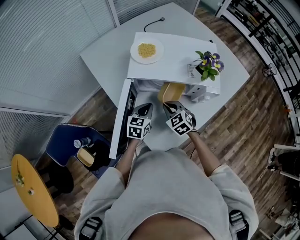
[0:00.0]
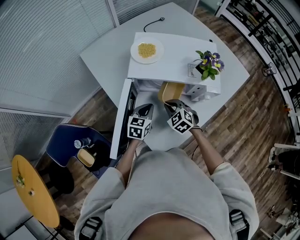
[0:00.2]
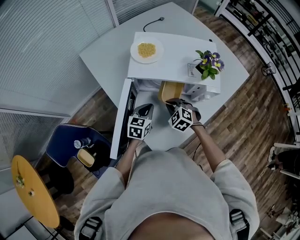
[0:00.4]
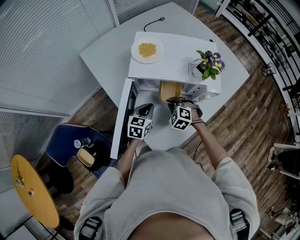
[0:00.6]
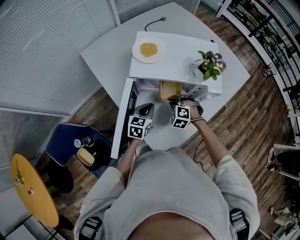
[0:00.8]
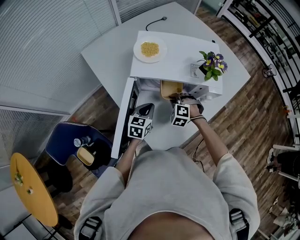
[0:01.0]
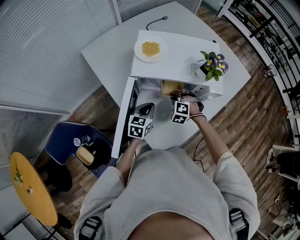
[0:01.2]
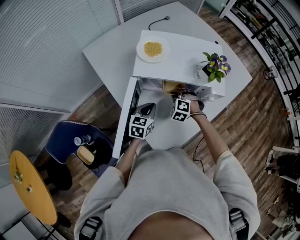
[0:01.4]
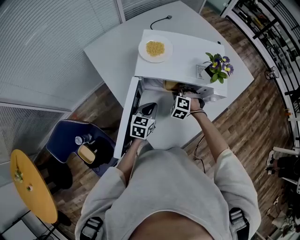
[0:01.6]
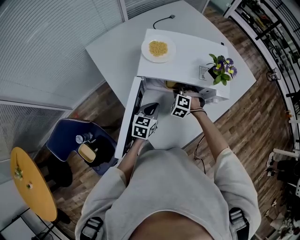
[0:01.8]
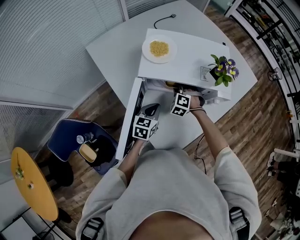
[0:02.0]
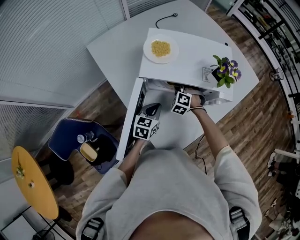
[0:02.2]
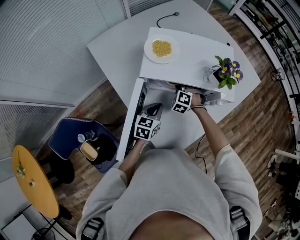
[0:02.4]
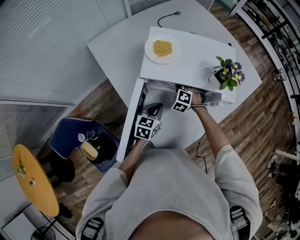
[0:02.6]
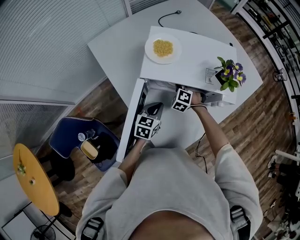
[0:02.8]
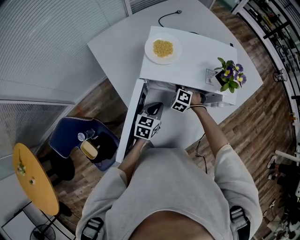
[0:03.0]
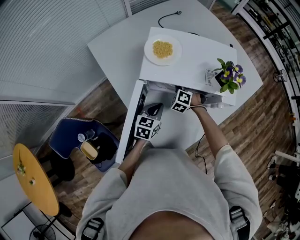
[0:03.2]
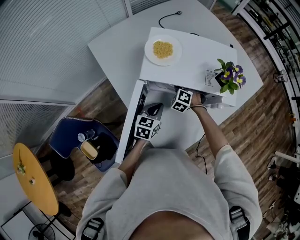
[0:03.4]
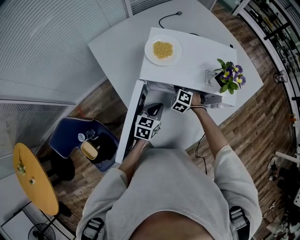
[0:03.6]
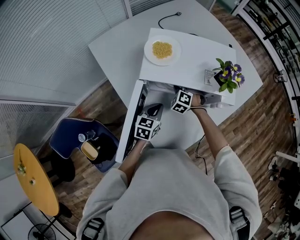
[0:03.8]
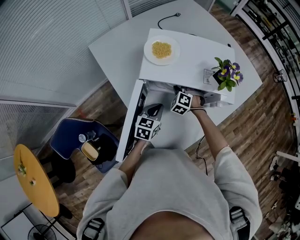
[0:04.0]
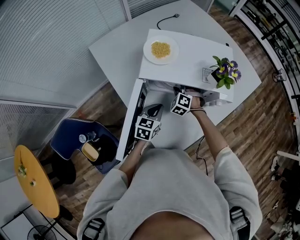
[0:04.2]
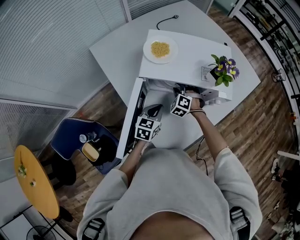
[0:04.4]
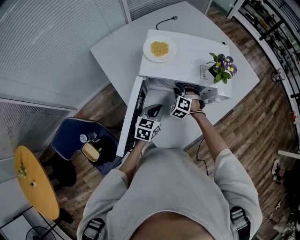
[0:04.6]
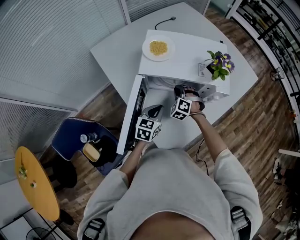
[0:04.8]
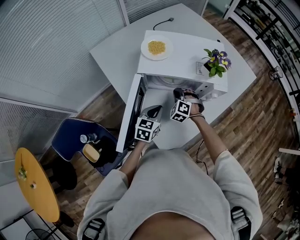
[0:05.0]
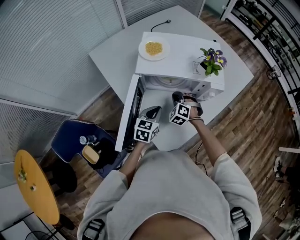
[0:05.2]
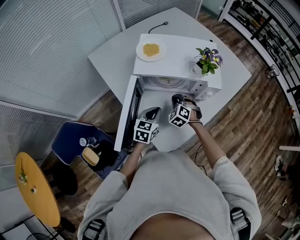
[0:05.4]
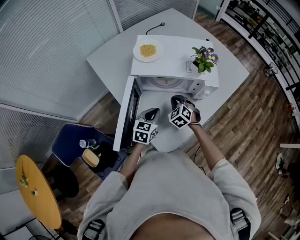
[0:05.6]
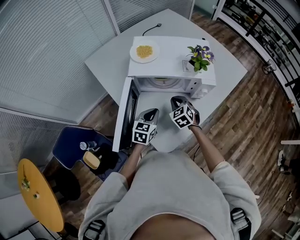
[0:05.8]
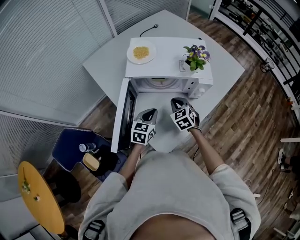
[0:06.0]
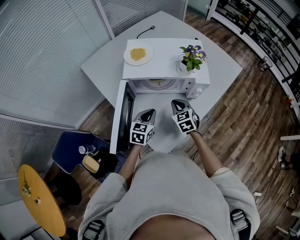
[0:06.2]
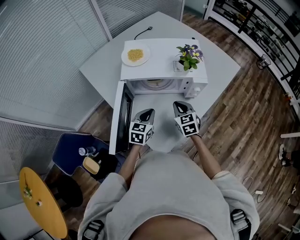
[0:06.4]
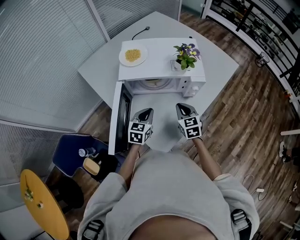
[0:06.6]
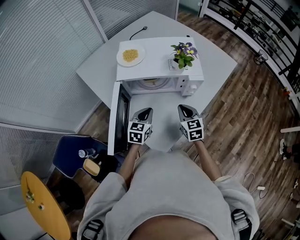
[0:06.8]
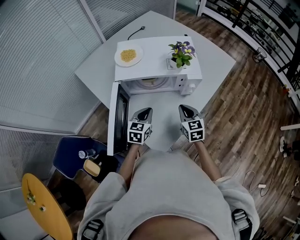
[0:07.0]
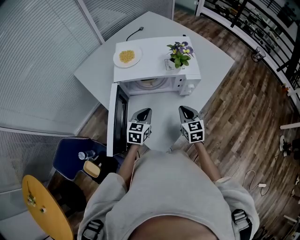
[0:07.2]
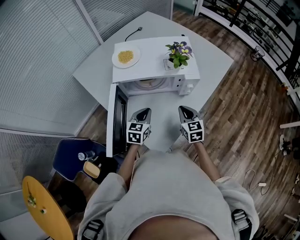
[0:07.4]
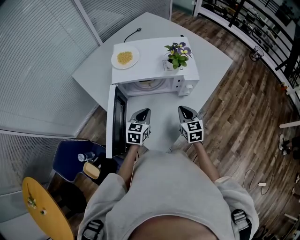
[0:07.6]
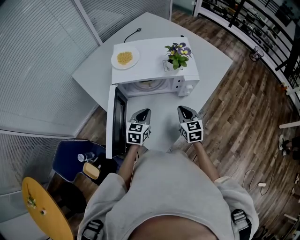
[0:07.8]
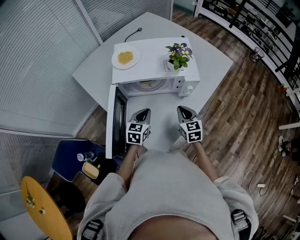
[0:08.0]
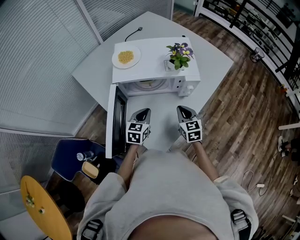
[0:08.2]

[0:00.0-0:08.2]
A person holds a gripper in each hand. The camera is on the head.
0:00.0 to 0:01.6: The right gripper is displaced forward by approximately 5 cm, and swivels about 40 degrees.
0:01.6 to 0:03.2: The right gripper heads forward, covering some 5 cm.
0:03.2 to 0:05.0: The right gripper moves backward, approximately 10 cm, and opens and closes again. The left gripper moves approximately 5 cm.
0:05.0 to 0:06.6: The right gripper goes approximately 15 cm to the right, upward and backward, and rolls clockwise, seen from behind, by roughly 60 degrees.
0:06.6 to 0:08.2: There are only small adjustments of the grippers.

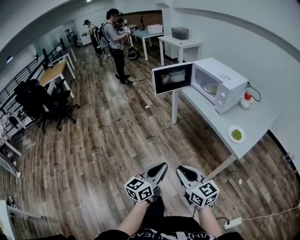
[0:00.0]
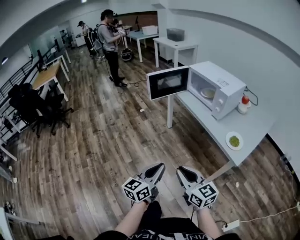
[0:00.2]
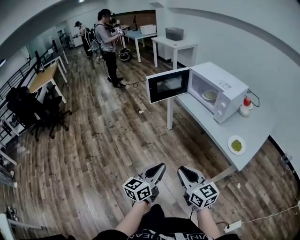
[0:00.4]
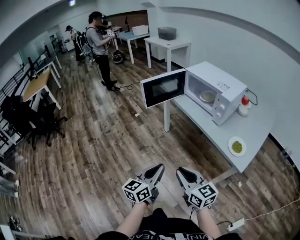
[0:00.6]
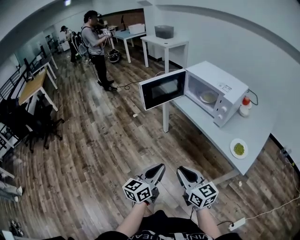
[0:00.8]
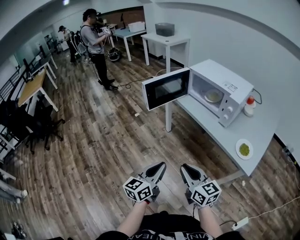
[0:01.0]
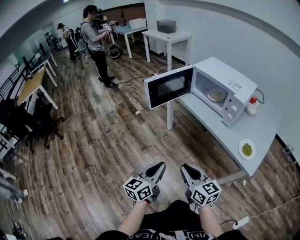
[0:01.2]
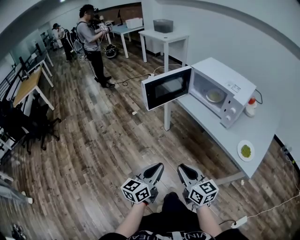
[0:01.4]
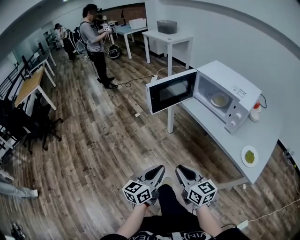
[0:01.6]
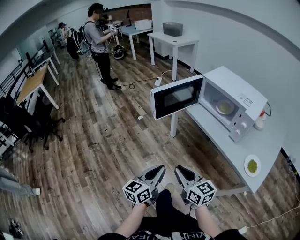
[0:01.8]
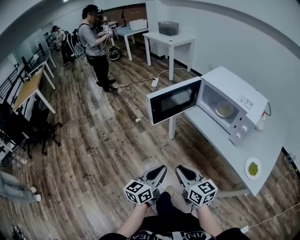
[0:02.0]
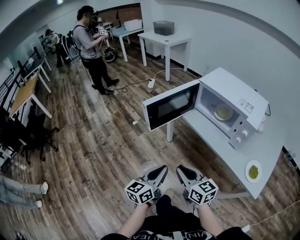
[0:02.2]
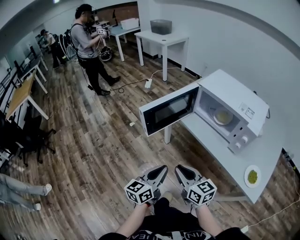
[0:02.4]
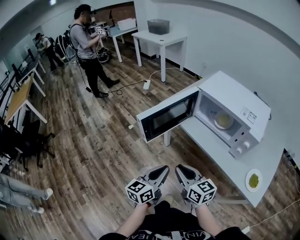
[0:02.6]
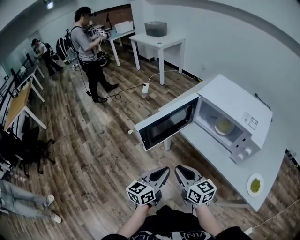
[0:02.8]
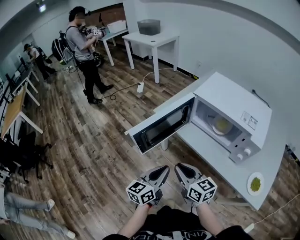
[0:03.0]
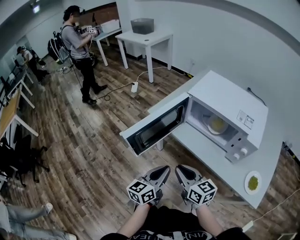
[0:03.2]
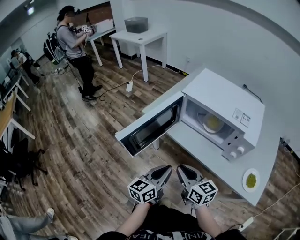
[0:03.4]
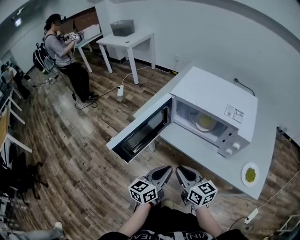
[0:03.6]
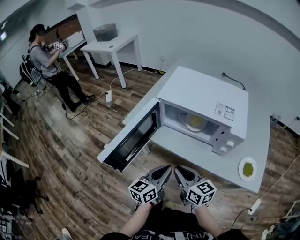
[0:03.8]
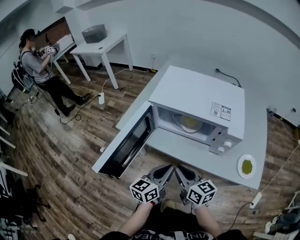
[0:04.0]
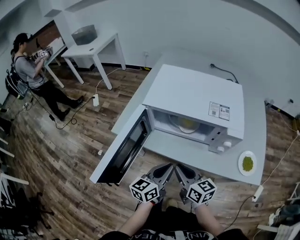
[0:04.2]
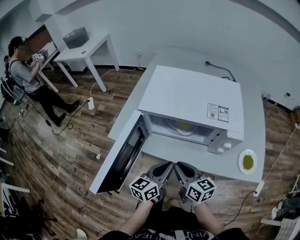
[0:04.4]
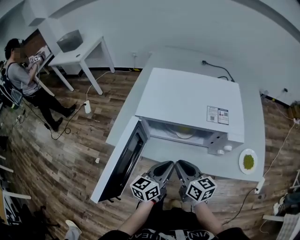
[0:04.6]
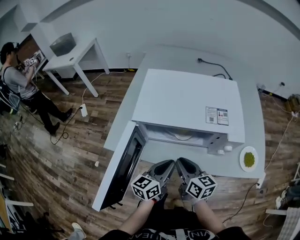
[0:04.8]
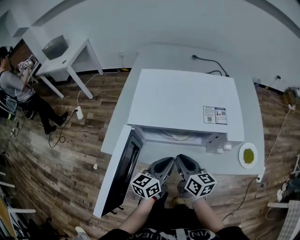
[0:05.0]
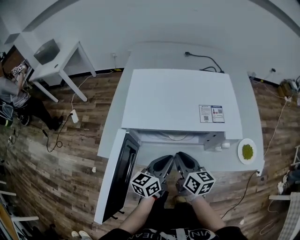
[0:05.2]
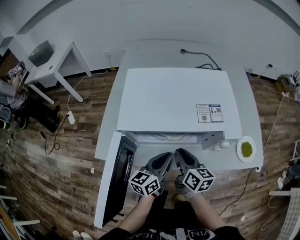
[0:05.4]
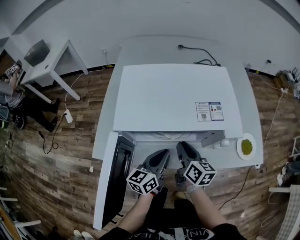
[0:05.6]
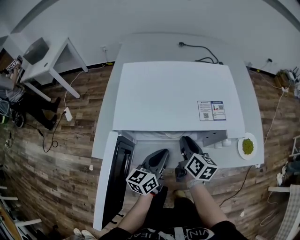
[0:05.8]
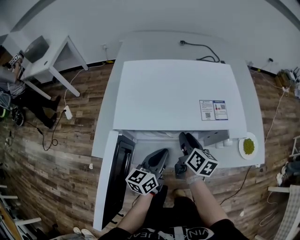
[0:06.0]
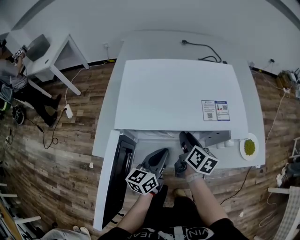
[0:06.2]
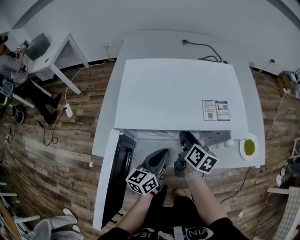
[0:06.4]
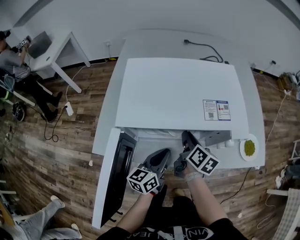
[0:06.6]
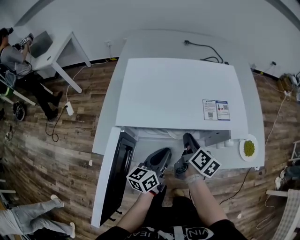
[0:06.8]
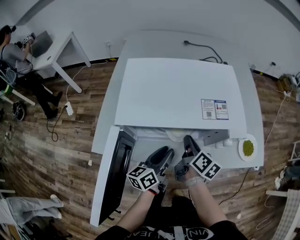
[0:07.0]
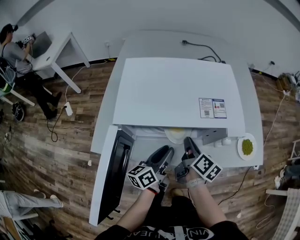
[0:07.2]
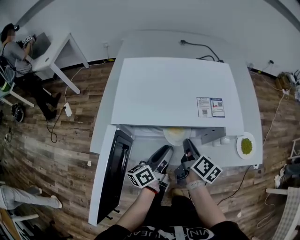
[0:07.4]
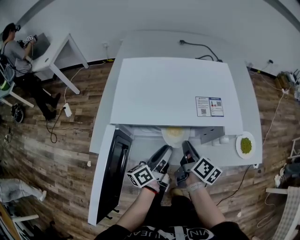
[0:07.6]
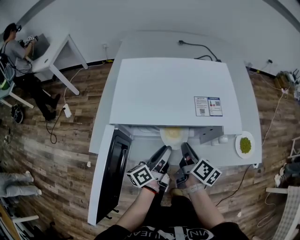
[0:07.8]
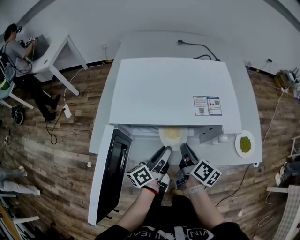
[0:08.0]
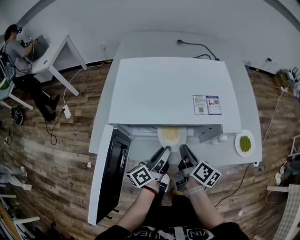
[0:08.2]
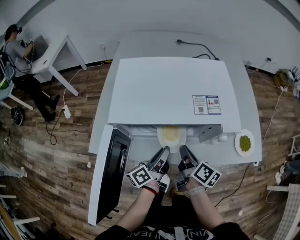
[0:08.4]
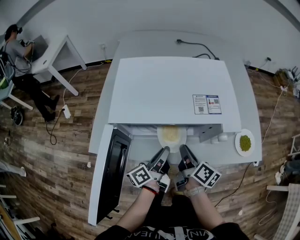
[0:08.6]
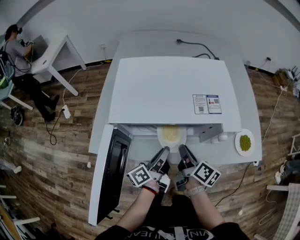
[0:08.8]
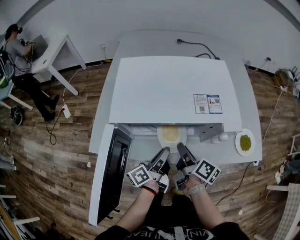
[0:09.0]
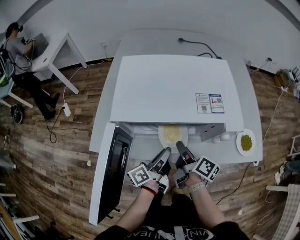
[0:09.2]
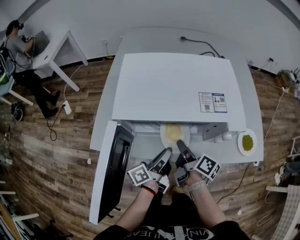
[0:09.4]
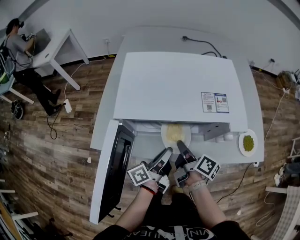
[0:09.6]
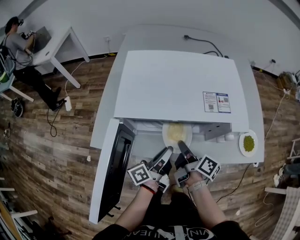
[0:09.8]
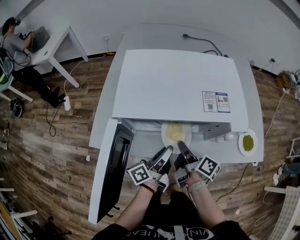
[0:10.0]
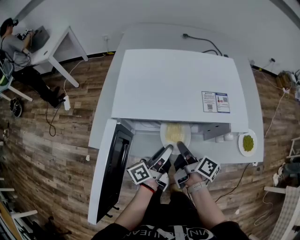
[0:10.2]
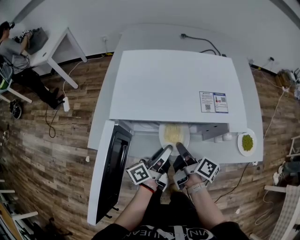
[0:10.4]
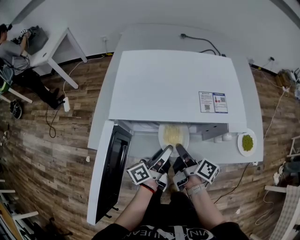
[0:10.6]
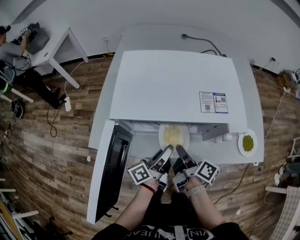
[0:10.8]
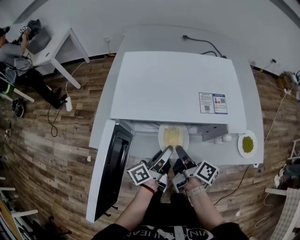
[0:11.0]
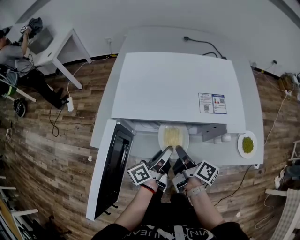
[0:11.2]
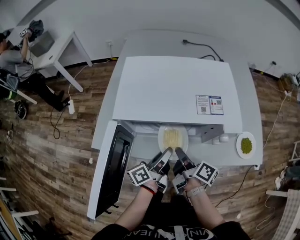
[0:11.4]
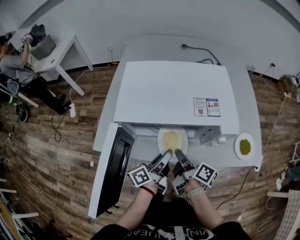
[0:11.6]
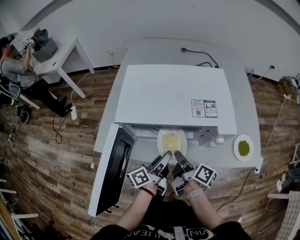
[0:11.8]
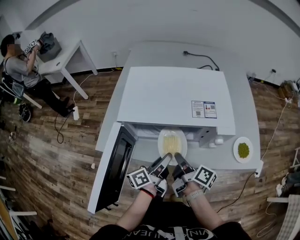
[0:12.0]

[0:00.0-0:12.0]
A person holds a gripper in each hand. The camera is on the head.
0:00.0 to 0:01.6: The two grippers go about 25 cm forward.
0:01.6 to 0:03.0: Both grippers move forward, approximately 30 cm.
0:03.0 to 0:04.4: The left gripper ends up some 20 cm from where it was, and changes its angle by roughly 30 degrees, while the right gripper moves some 15 cm, and rotates roughly 30 degrees.
0:04.4 to 0:06.0: The right gripper travels forward by some 15 cm, and changes its angle by approximately 40 degrees; the left gripper travels forward by some 10 cm.
0:06.0 to 0:07.6: The left gripper changes its angle by some 30 degrees, and opens its fingers; the right gripper ends up about 5 cm from where it was.
0:07.6 to 0:09.0: The grippers stay close to where they were, moving slightly.
0:09.0 to 0:12.0: There are only small adjustments of the grippers.

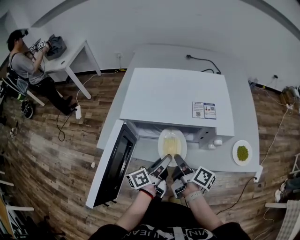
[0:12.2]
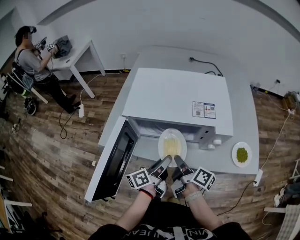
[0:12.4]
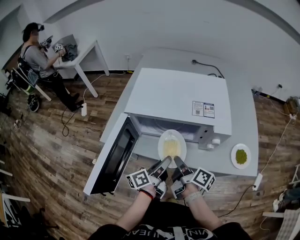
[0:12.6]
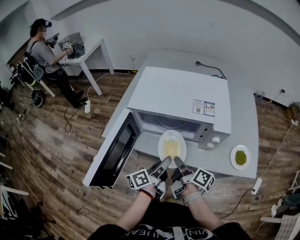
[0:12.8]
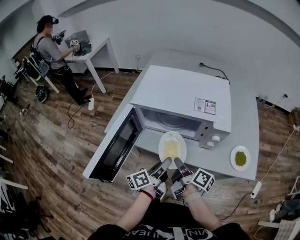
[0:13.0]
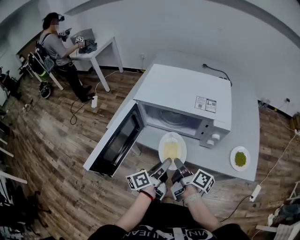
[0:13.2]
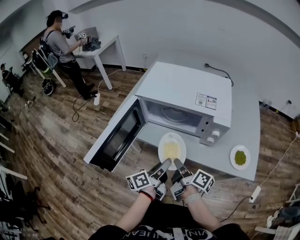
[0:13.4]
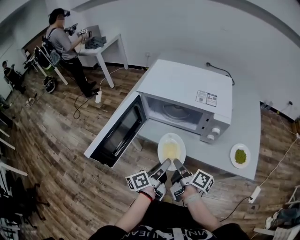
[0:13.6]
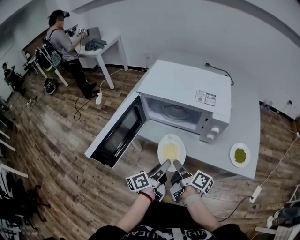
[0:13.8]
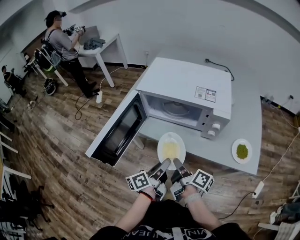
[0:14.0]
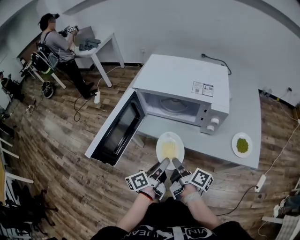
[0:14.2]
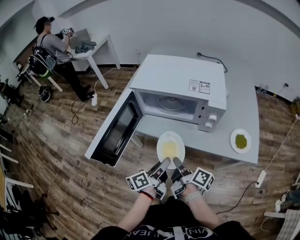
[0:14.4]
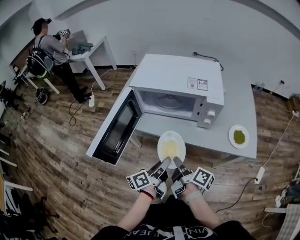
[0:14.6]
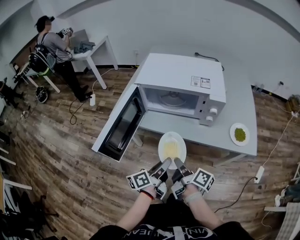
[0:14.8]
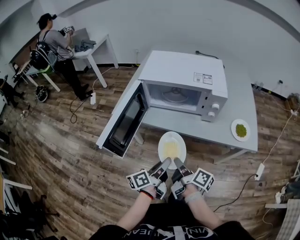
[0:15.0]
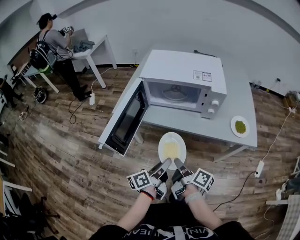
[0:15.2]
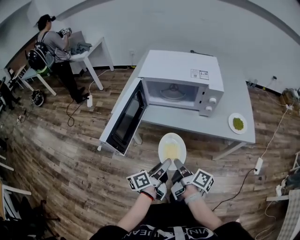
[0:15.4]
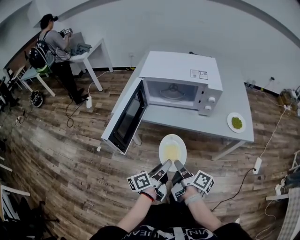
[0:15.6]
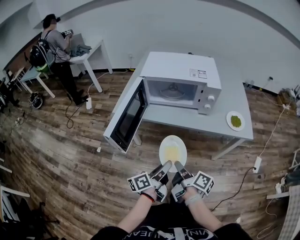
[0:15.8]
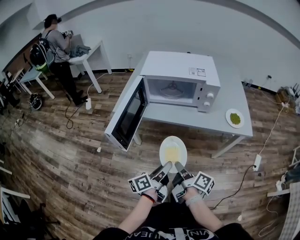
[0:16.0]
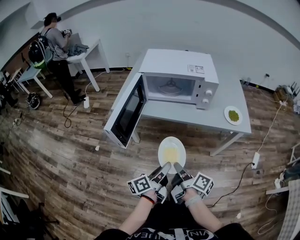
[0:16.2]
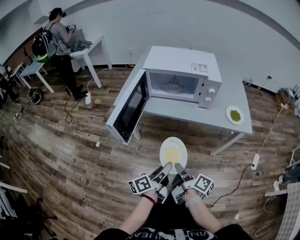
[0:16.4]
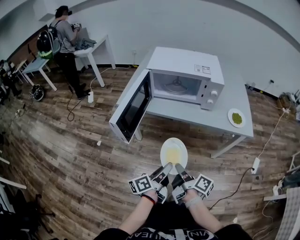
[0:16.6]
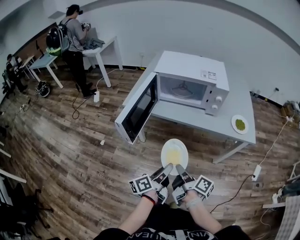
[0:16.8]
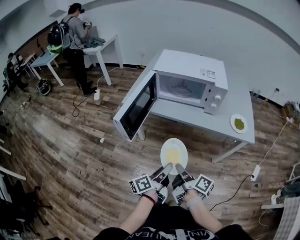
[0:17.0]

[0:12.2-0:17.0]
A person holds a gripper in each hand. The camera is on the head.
0:12.2 to 0:13.8: Both grippers travel together backward, about 15 cm.
0:13.8 to 0:15.4: The grippers both shift backward by roughly 10 cm.
0:15.4 to 0:17.0: The grippers both shift backward by some 10 cm.
